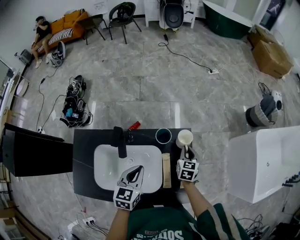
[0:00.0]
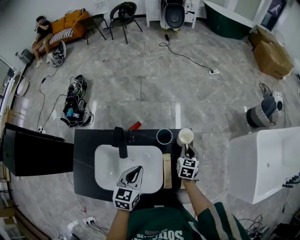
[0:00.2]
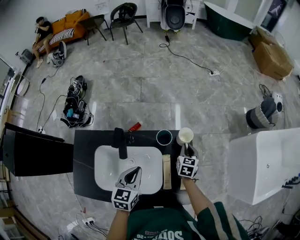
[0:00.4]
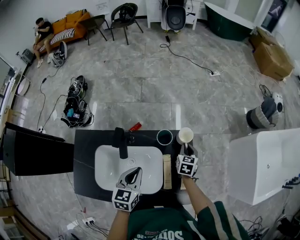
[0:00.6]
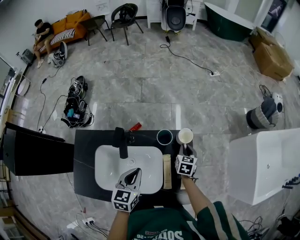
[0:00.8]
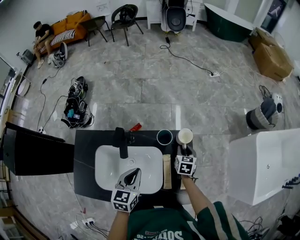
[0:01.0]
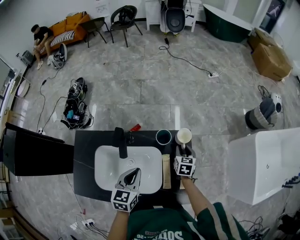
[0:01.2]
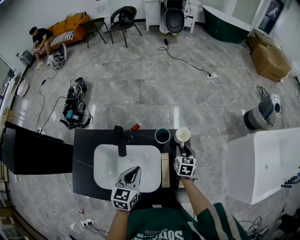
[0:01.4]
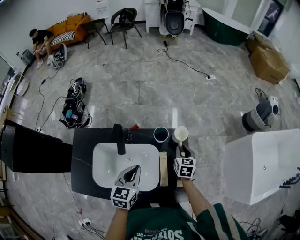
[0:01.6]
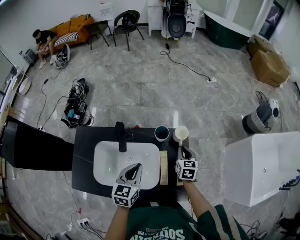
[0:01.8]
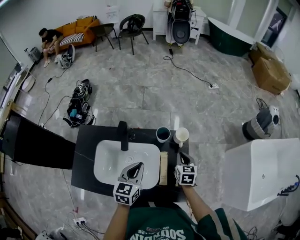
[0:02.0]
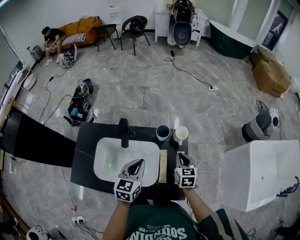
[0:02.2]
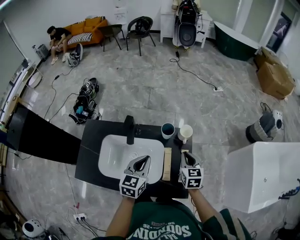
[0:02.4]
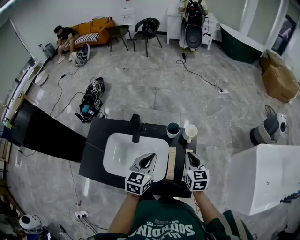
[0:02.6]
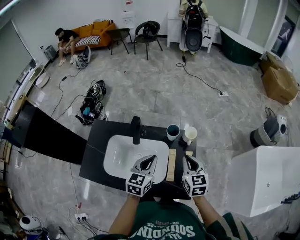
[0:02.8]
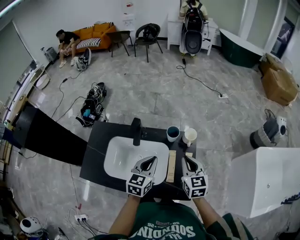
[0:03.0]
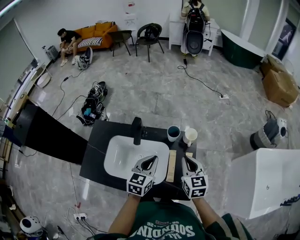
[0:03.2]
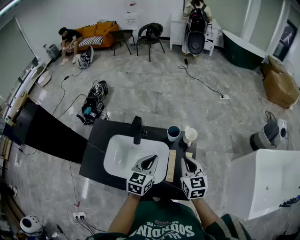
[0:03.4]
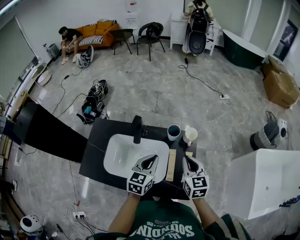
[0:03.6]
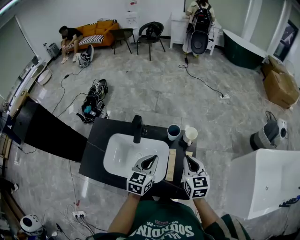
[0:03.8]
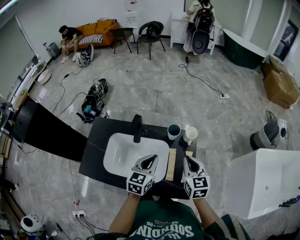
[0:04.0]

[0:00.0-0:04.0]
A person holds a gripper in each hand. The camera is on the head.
0:00.0 to 0:01.4: The right gripper opens its fingers.
0:01.4 to 0:02.6: The left gripper is displaced upward by some 5 cm. Meanwhile the right gripper is displaced upward and backward by some 20 cm, turns by roughly 20 degrees, and closes its fingers.
0:02.6 to 0:04.0: The right gripper ends up some 5 cm from where it was.

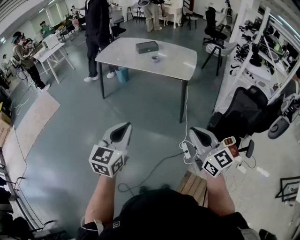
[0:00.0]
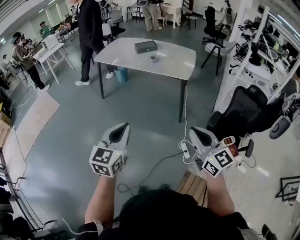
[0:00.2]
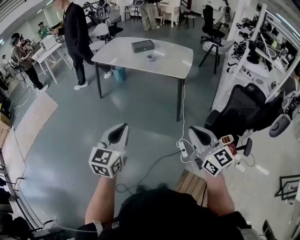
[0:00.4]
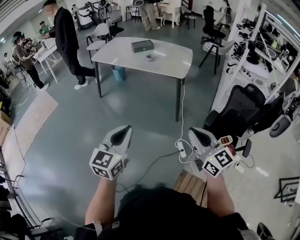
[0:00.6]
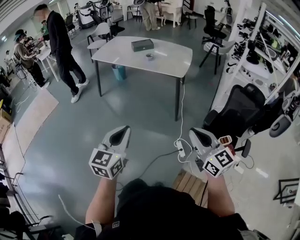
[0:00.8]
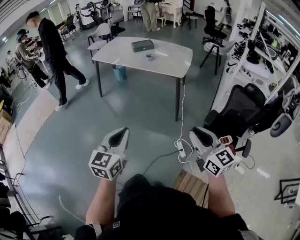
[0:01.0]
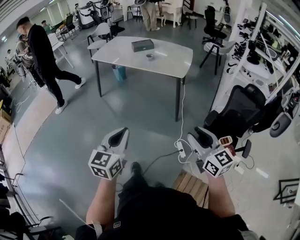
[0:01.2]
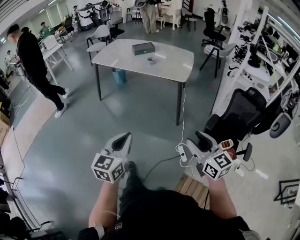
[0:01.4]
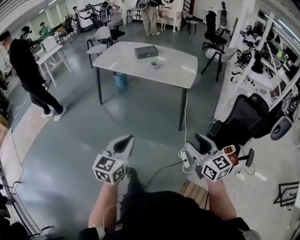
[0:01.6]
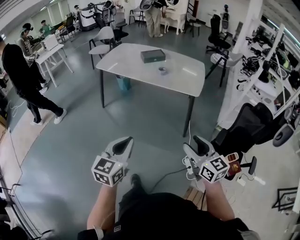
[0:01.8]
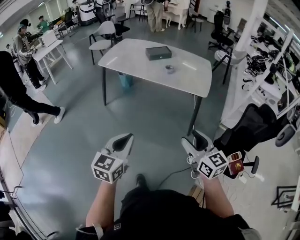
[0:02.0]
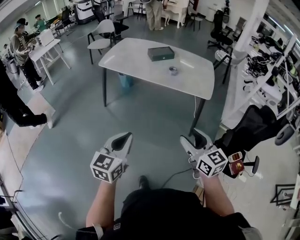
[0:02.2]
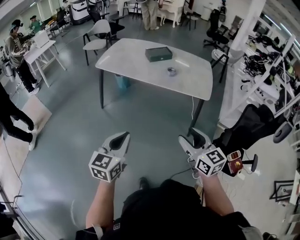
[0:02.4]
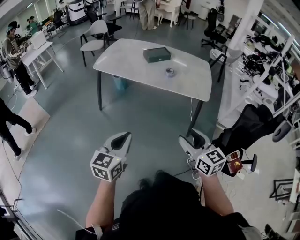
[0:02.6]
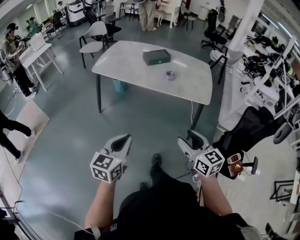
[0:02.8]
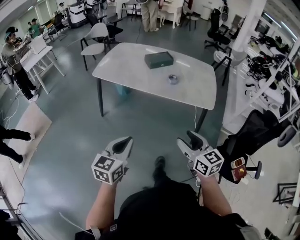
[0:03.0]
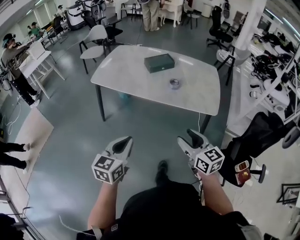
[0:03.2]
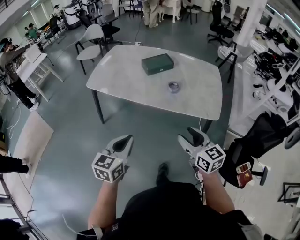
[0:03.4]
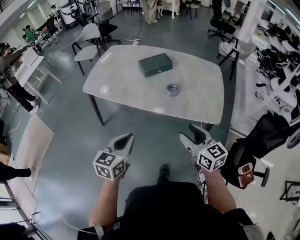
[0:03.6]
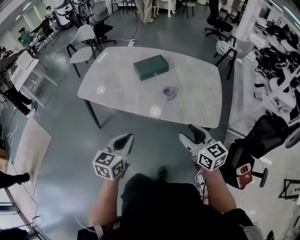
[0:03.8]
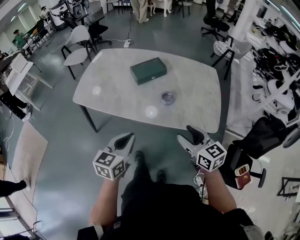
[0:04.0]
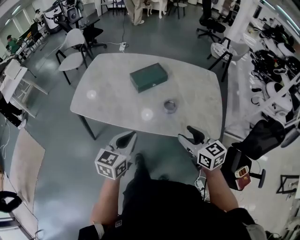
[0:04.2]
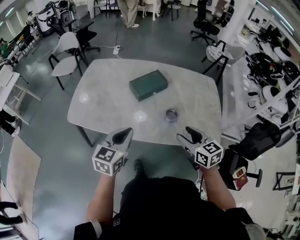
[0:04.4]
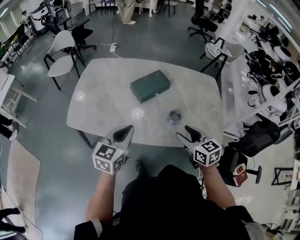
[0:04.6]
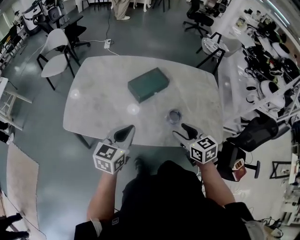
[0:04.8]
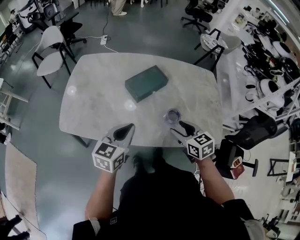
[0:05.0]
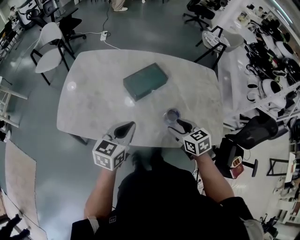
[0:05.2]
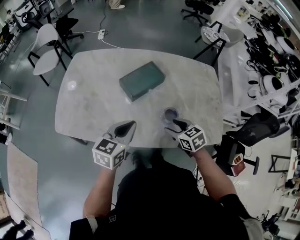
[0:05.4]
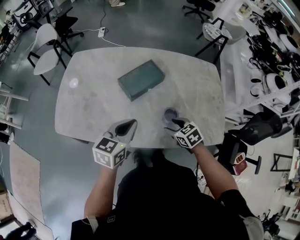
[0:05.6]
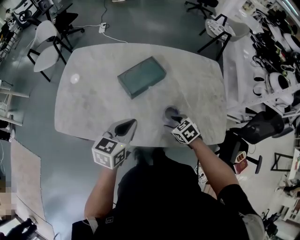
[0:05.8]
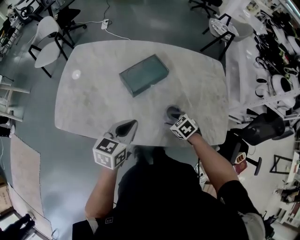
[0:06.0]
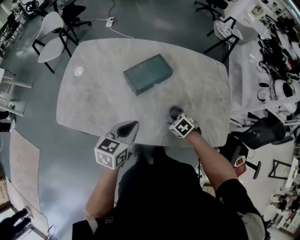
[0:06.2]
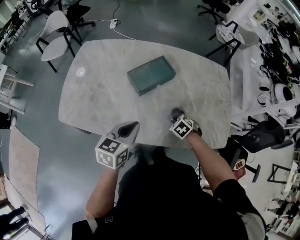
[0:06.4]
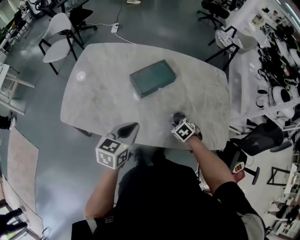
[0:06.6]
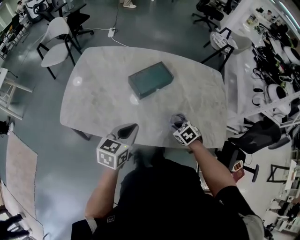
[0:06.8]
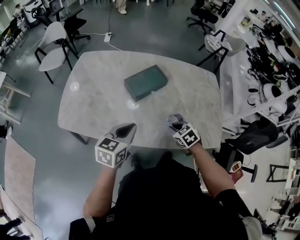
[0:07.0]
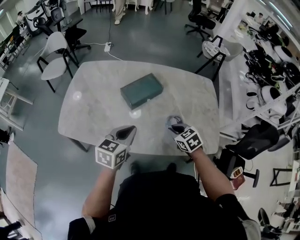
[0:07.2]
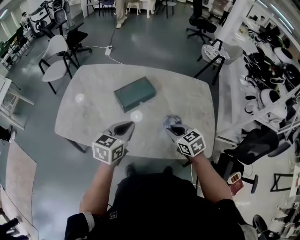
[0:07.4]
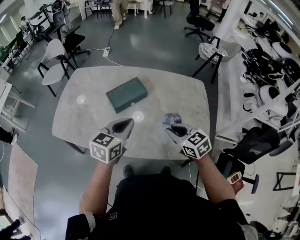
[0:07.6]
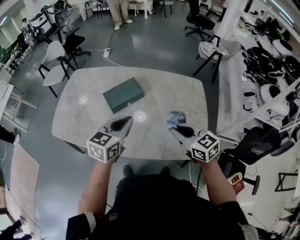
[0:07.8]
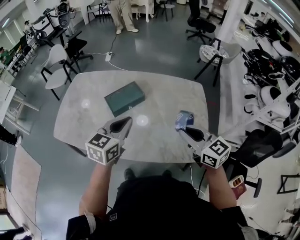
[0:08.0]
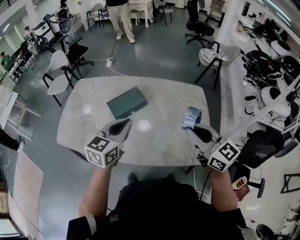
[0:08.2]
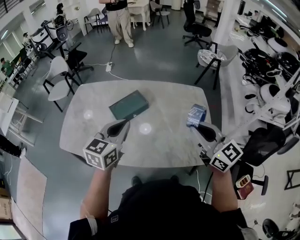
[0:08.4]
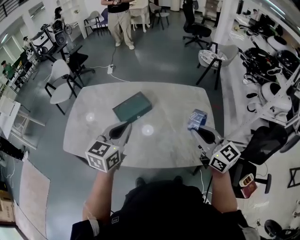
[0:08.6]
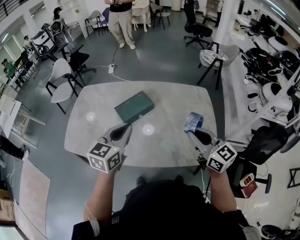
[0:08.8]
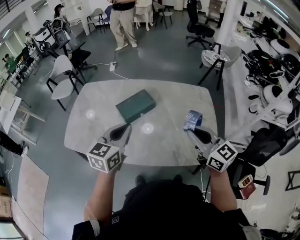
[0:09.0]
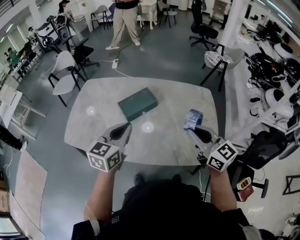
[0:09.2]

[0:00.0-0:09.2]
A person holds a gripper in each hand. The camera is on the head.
0:00.0 to 0:01.6: The left gripper travels downward and forward by about 10 cm. Meanwhile the right gripper heads forward and downward, covering some 10 cm, and opens.
0:01.6 to 0:03.0: Both grippers are carried forward and to the left, some 40 cm.
0:03.0 to 0:04.6: Both grippers are carried forward, about 60 cm.
0:04.6 to 0:06.2: The right gripper goes roughly 30 cm downward and forward, and angles its fingers downward, by some 40 degrees. The left gripper shifts about 15 cm forward, downward and to the right.
0:06.2 to 0:07.6: The left gripper is displaced to the right and upward by about 20 cm; the right gripper heads upward and to the right, covering approximately 25 cm, tilts its fingers approximately 40 degrees upward, and closes.
0:07.6 to 0:09.2: The left gripper moves upward, roughly 5 cm. The right gripper heads upward and to the right, covering some 15 cm, and rotates roughly 30 degrees.

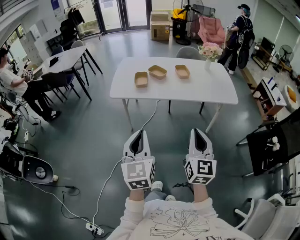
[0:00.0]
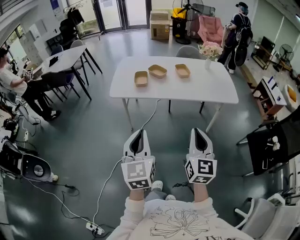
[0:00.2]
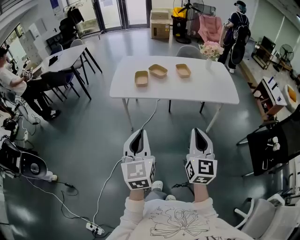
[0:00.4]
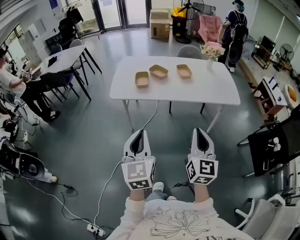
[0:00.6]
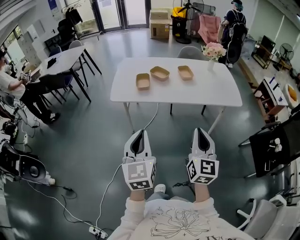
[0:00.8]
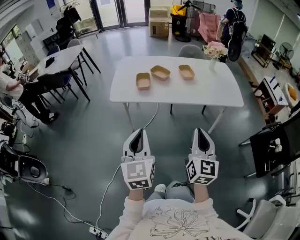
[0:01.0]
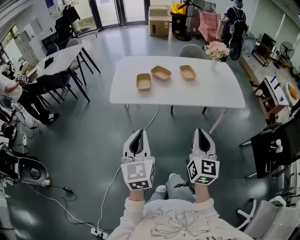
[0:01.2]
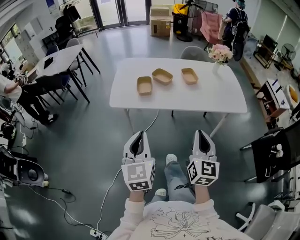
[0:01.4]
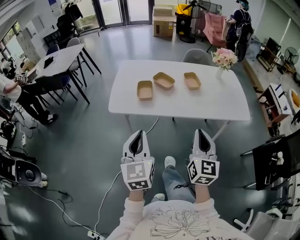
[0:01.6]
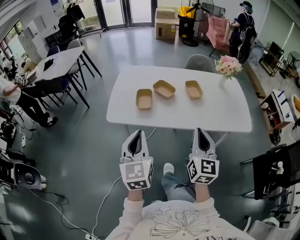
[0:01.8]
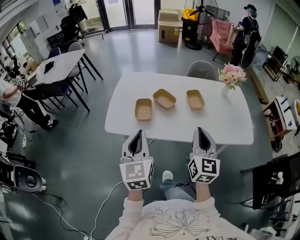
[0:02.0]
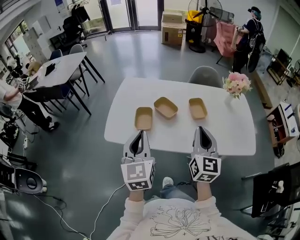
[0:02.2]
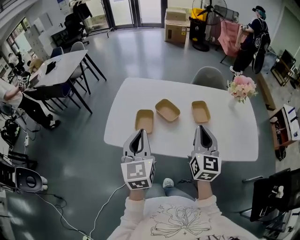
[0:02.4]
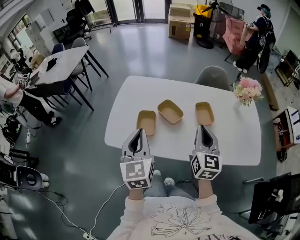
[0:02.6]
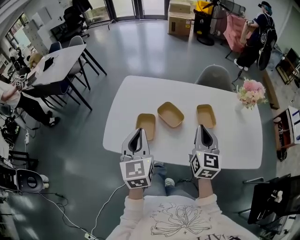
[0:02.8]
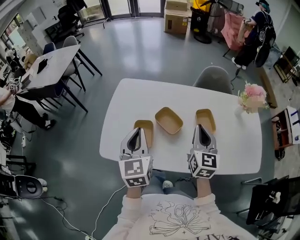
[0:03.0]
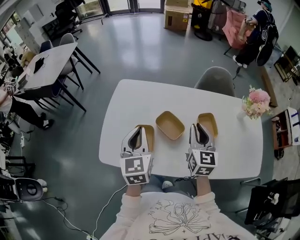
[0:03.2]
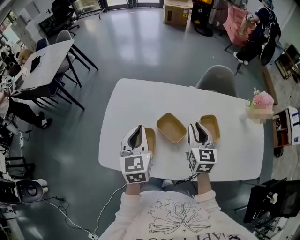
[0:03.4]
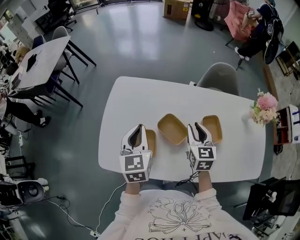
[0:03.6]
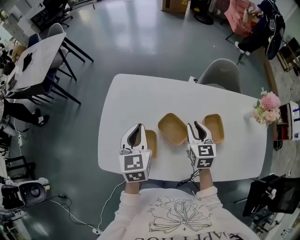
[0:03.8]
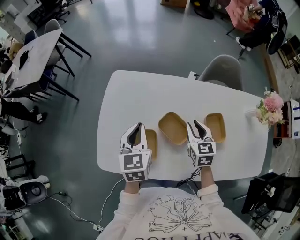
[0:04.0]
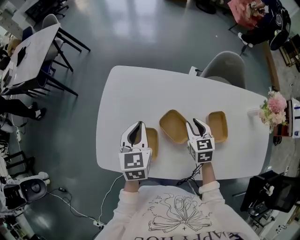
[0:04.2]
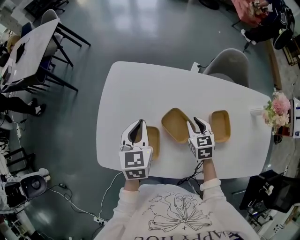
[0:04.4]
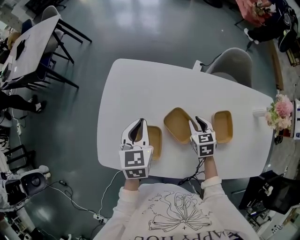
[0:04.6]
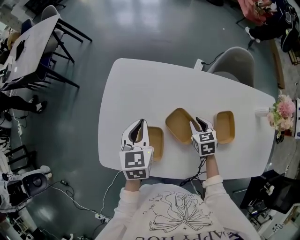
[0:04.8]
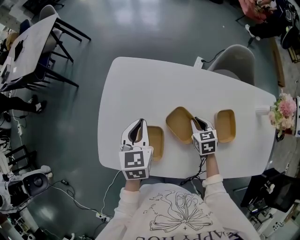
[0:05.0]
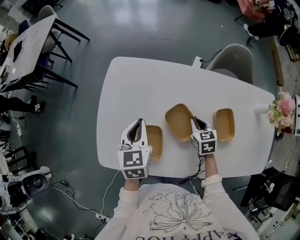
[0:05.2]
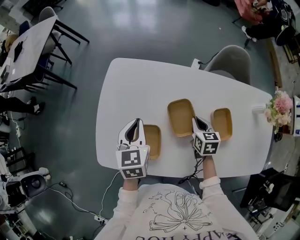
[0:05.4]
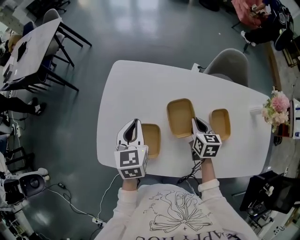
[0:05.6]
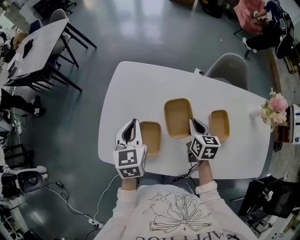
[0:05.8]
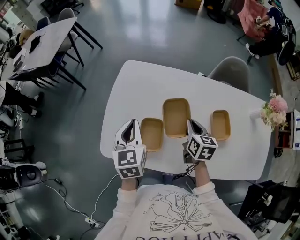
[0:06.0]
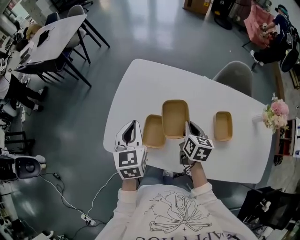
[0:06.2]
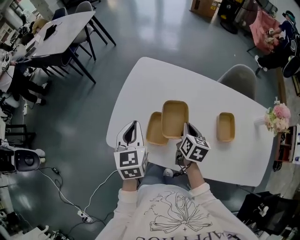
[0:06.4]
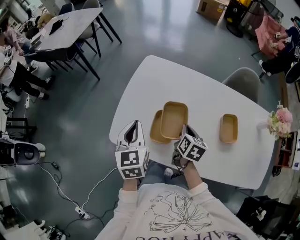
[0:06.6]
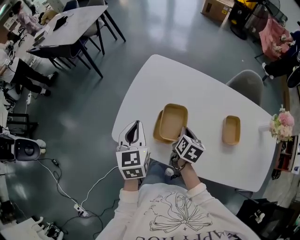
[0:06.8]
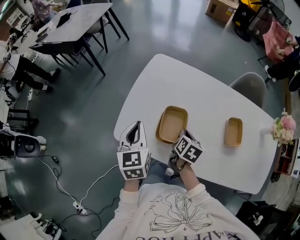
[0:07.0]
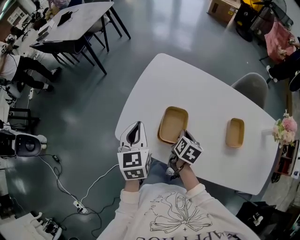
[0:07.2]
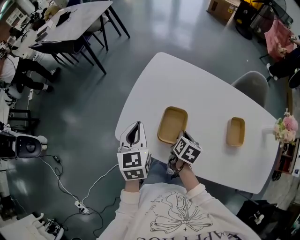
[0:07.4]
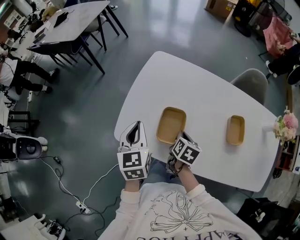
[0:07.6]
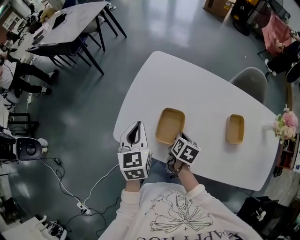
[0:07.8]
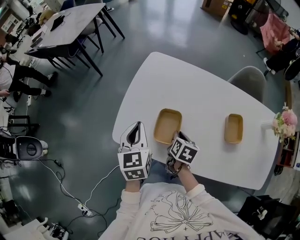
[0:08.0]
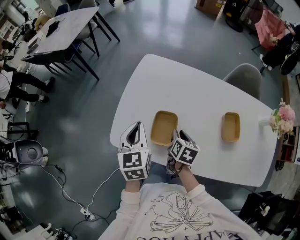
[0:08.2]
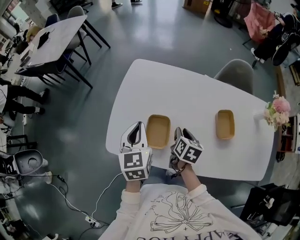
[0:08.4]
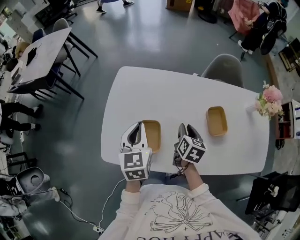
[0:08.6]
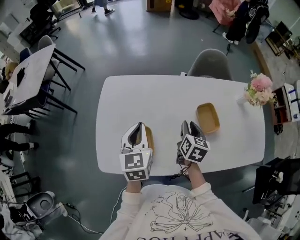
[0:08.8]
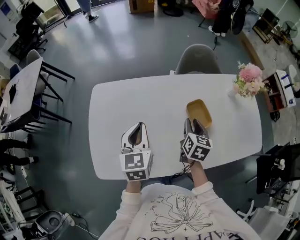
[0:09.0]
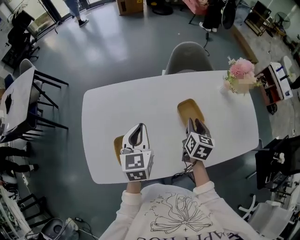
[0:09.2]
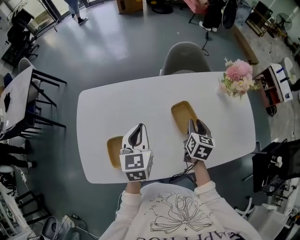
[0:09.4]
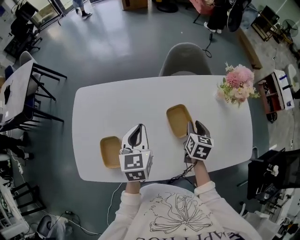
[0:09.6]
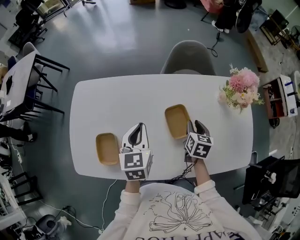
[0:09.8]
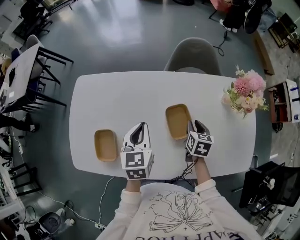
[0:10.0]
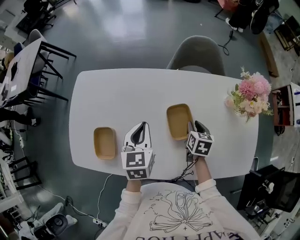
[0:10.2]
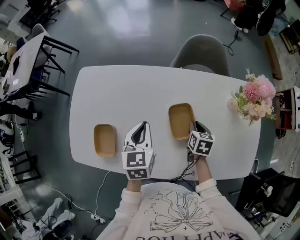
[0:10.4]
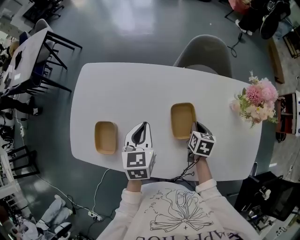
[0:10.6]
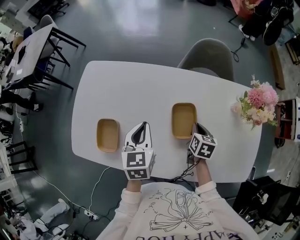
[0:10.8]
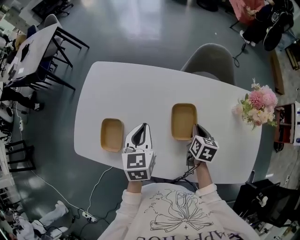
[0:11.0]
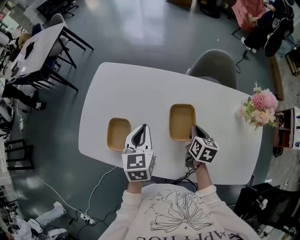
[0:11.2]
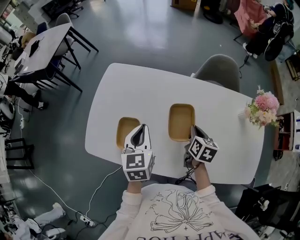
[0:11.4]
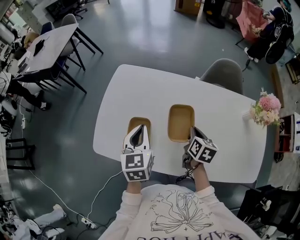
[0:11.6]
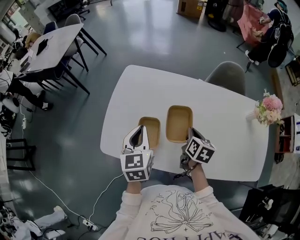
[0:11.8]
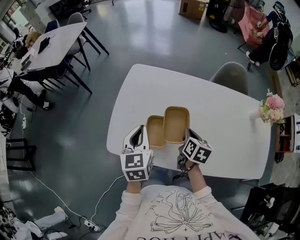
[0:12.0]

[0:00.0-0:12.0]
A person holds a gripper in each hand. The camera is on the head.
0:00.0 to 0:01.6: The grippers both shift forward by some 20 cm.
0:01.6 to 0:03.0: The two grippers go roughly 40 cm forward.
0:03.0 to 0:04.4: The left gripper heads forward and downward, covering about 20 cm; the right gripper moves downward and forward, about 25 cm, tilts its fingers some 30 degrees downward, and opens.
0:04.4 to 0:06.0: The right gripper ends up approximately 5 cm from where it was, swivels some 30 degrees, and closes its fingers, while the left gripper travels backward by about 5 cm.
0:06.0 to 0:07.6: The left gripper heads to the left and backward, covering some 10 cm; the right gripper travels to the left, backward and downward by roughly 15 cm.
0:07.6 to 0:09.0: The right gripper changes place by about 25 cm, turns by approximately 30 degrees, and opens up, while the left gripper moves roughly 25 cm, and changes its angle by some 30 degrees.
0:09.0 to 0:10.4: Both grippers move to the right and downward, some 20 cm. The right gripper rotates roughly 20 degrees.
0:10.4 to 0:12.0: Both grippers travel together to the left, some 30 cm.
